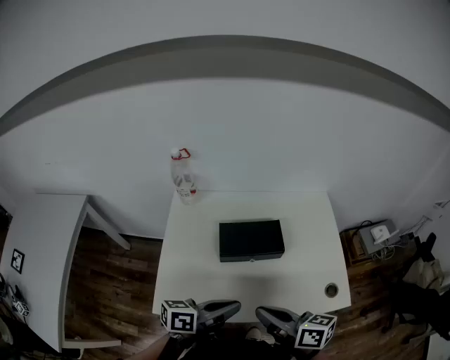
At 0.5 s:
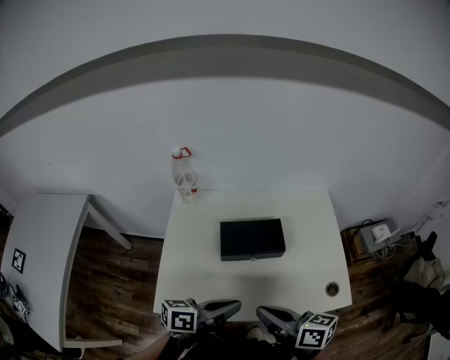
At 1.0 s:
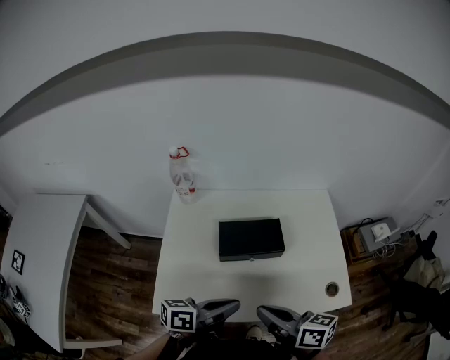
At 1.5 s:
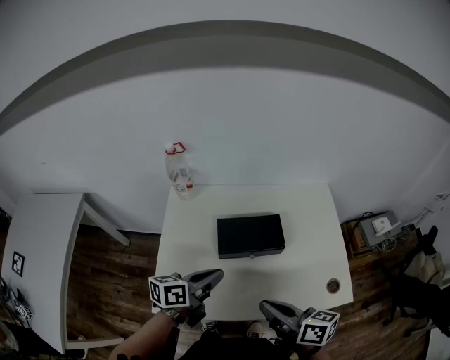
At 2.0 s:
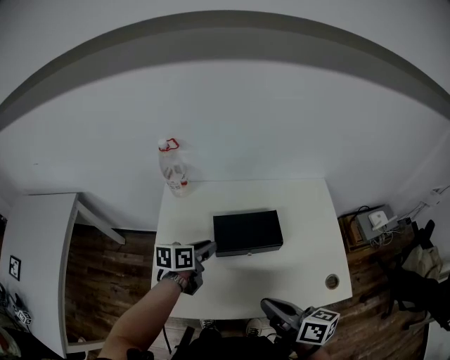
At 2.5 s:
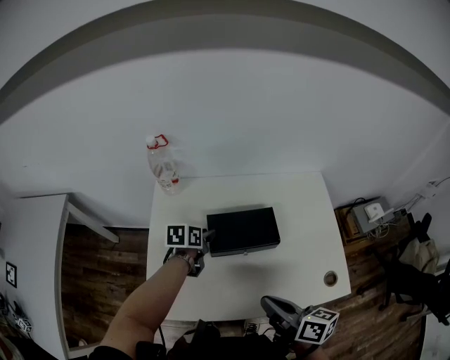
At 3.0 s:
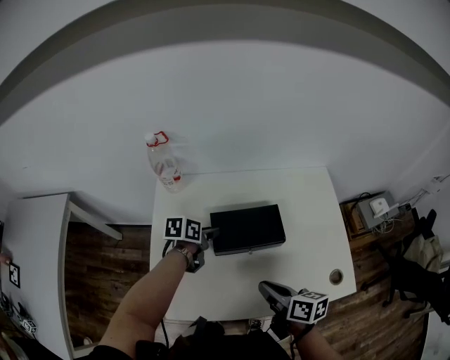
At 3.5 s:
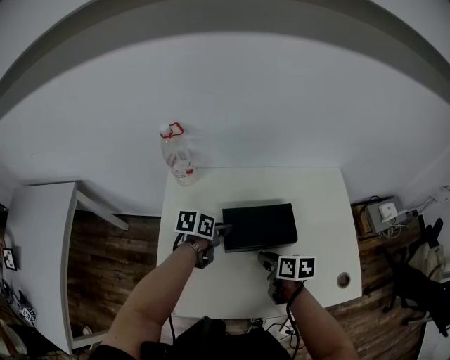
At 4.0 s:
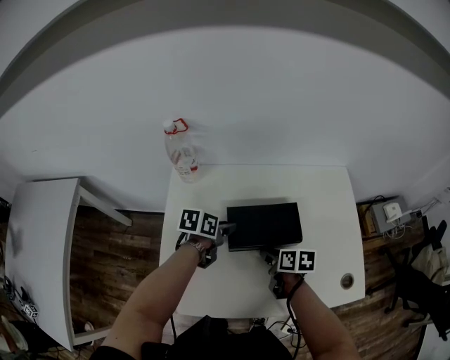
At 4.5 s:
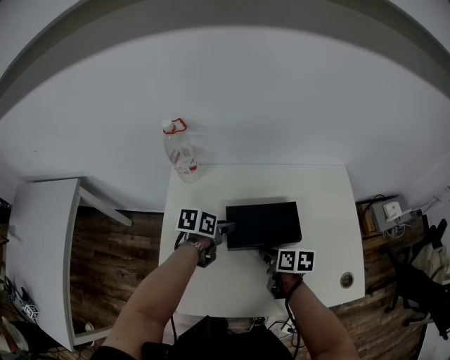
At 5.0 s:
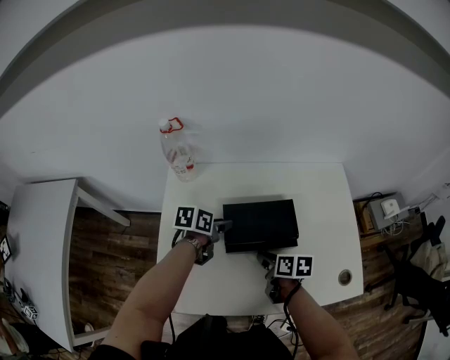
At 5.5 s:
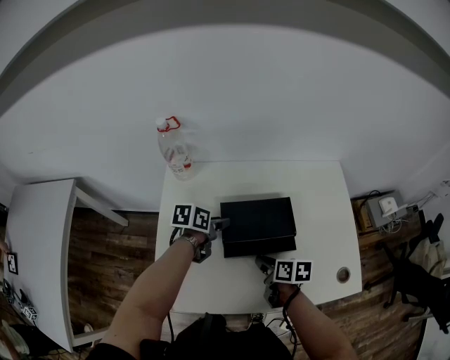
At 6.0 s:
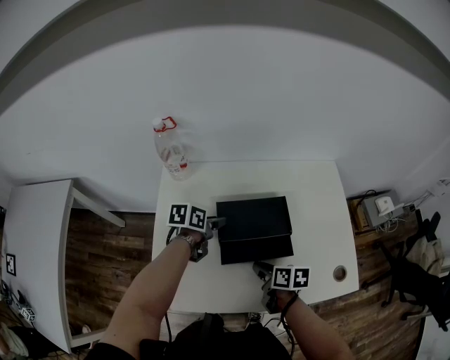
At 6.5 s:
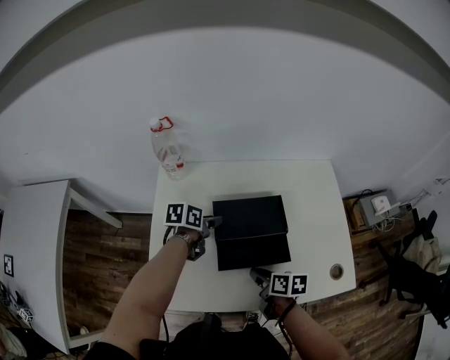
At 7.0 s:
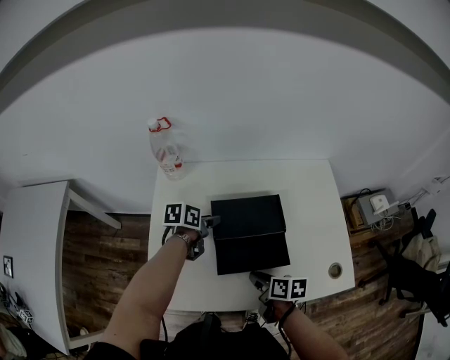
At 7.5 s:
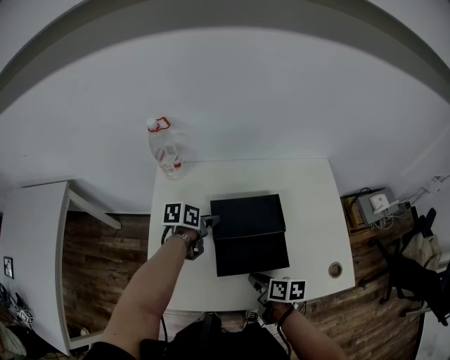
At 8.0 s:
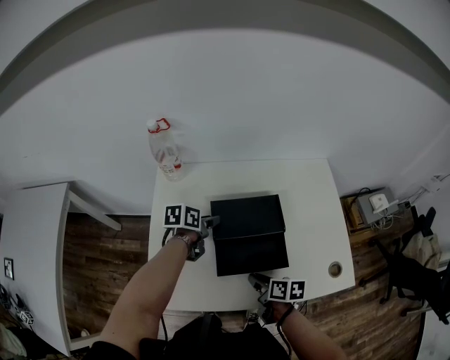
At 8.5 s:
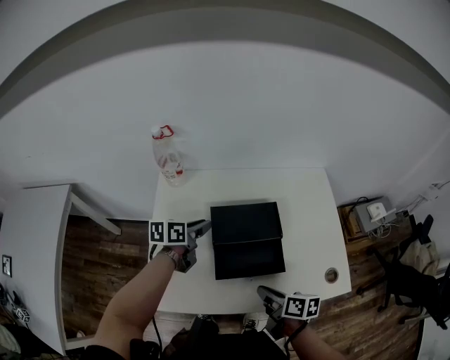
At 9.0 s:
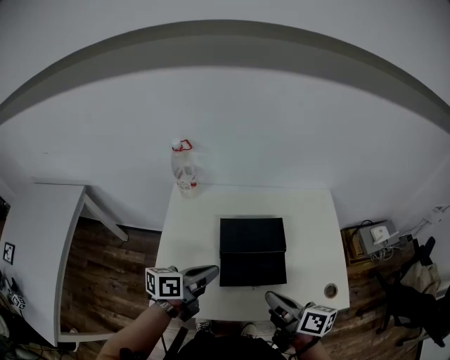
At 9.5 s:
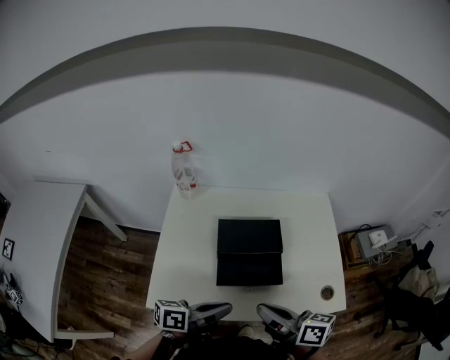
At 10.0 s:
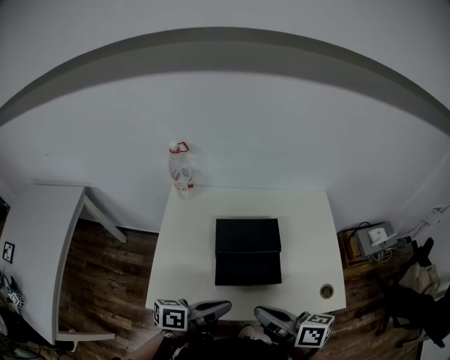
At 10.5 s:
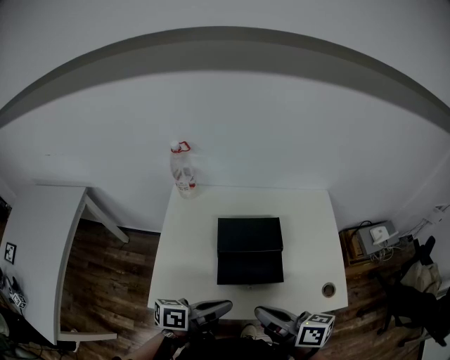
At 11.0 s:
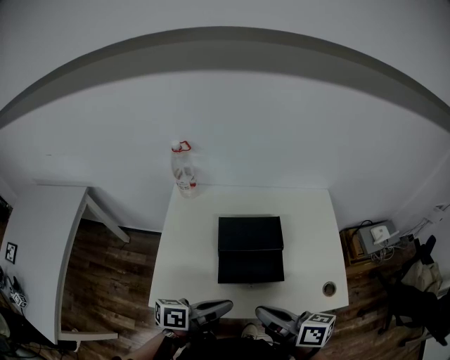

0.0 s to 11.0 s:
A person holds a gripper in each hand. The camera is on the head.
0.0 to 2.0 s: The left gripper is displaced forward, to the left and downward by roughly 25 cm, changes its angle by about 30 degrees, and opens up.
2.0 to 3.5 s: The left gripper moves downward and forward, about 10 cm; the right gripper is displaced downward and forward by roughly 25 cm, rotates about 30 degrees, and opens its fingers.
3.5 to 5.5 s: There are only small adjustments of the grippers.
5.5 to 7.5 s: The right gripper moves backward, roughly 5 cm.
7.5 to 9.0 s: The left gripper shifts some 20 cm backward and upward, rotates approximately 30 degrees, and closes. Meanwhile the right gripper goes some 15 cm upward, and changes its angle by roughly 30 degrees.
9.0 to 11.0 s: The right gripper shifts some 5 cm backward. Meanwhile the left gripper travels backward and to the right by roughly 10 cm.

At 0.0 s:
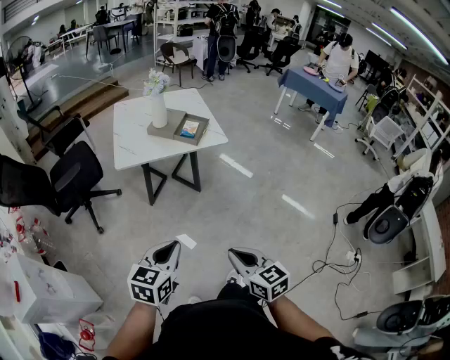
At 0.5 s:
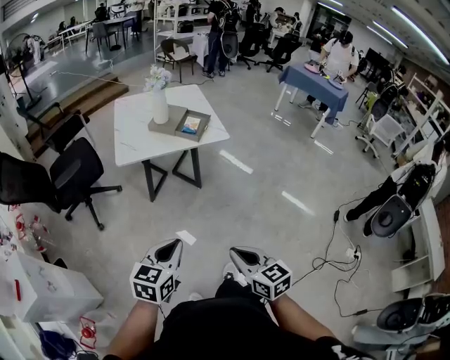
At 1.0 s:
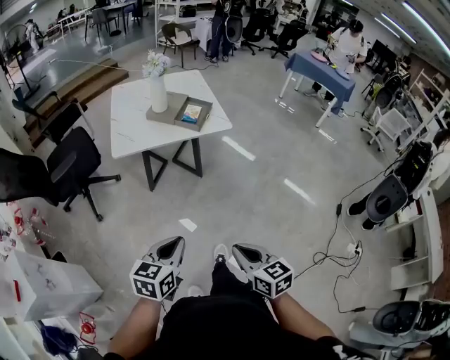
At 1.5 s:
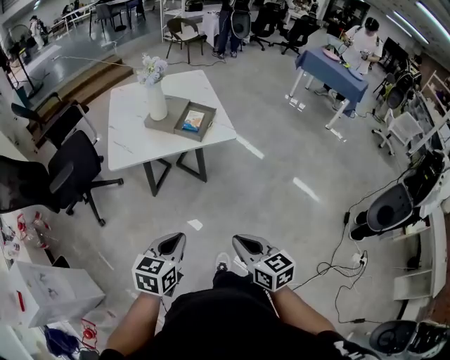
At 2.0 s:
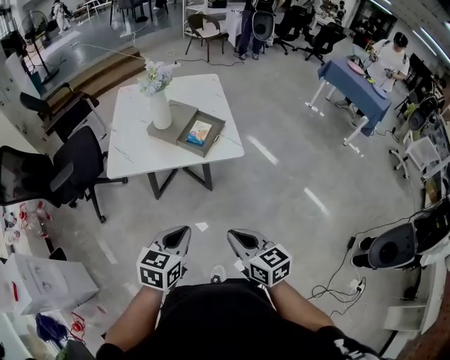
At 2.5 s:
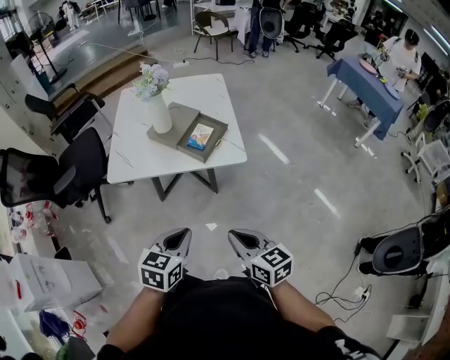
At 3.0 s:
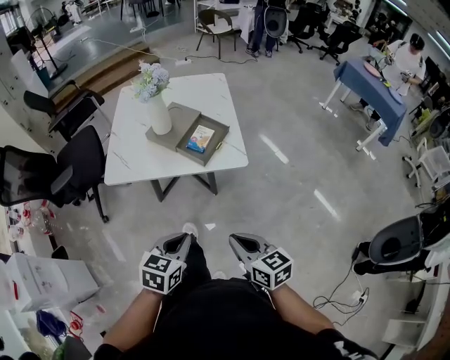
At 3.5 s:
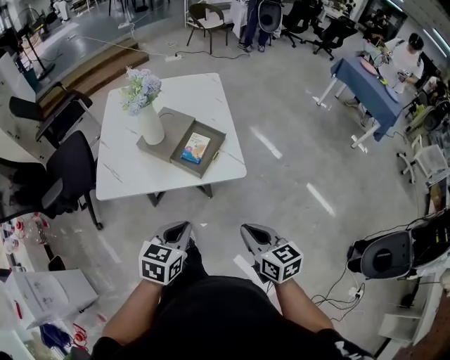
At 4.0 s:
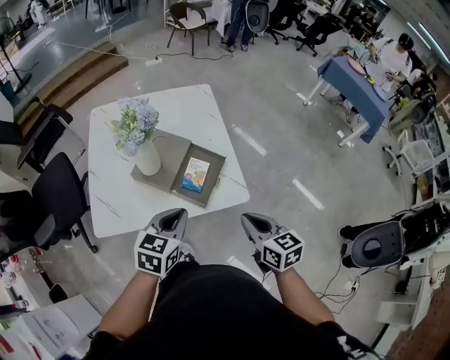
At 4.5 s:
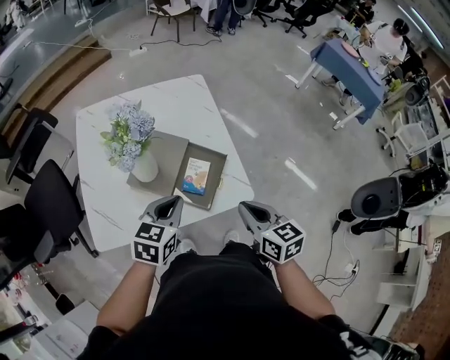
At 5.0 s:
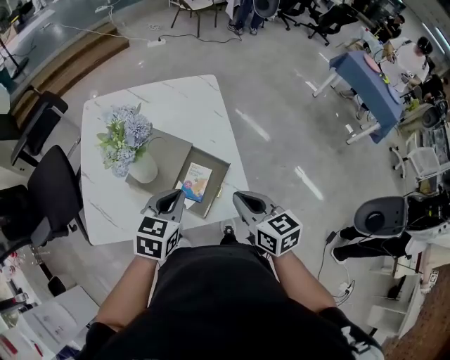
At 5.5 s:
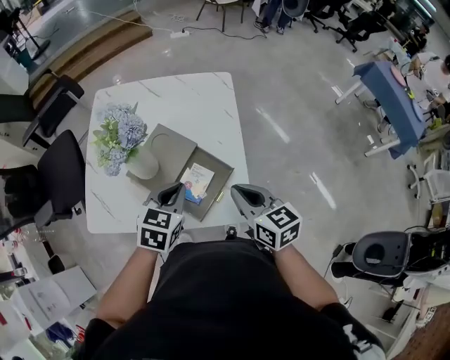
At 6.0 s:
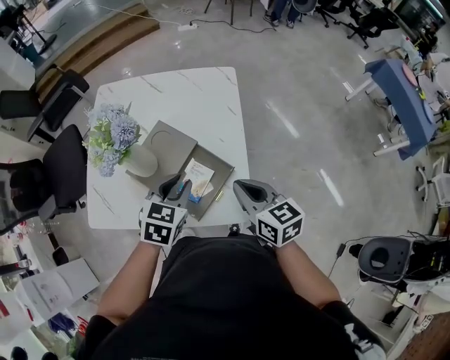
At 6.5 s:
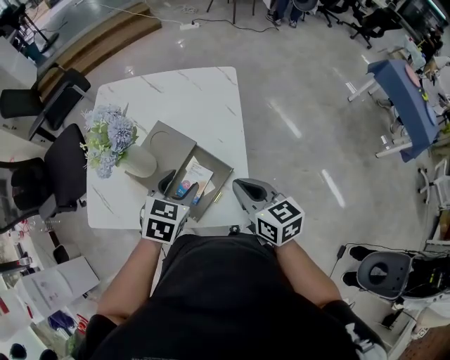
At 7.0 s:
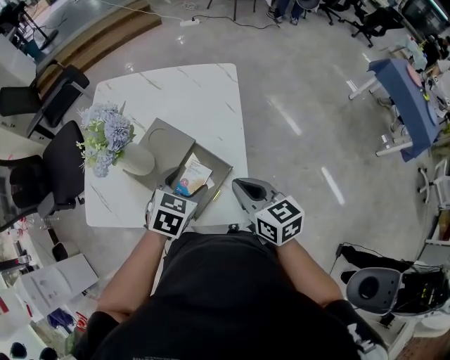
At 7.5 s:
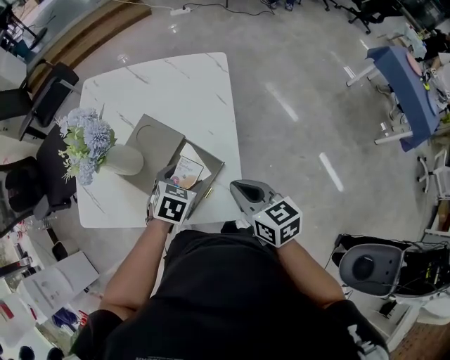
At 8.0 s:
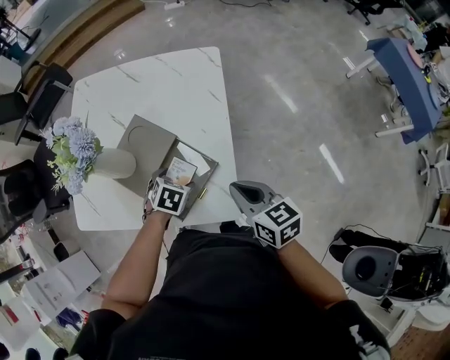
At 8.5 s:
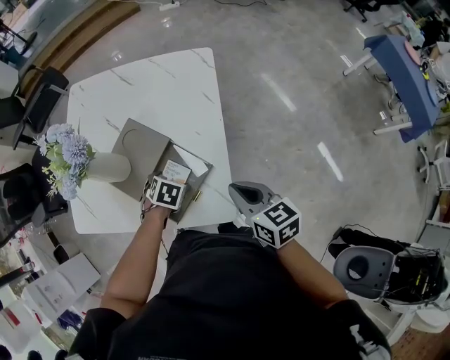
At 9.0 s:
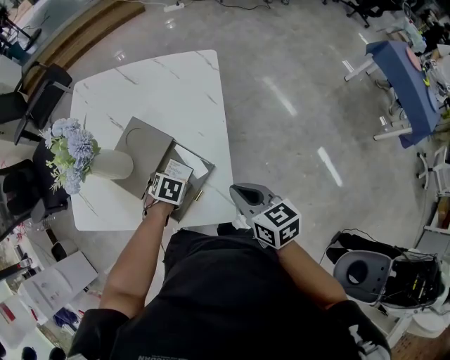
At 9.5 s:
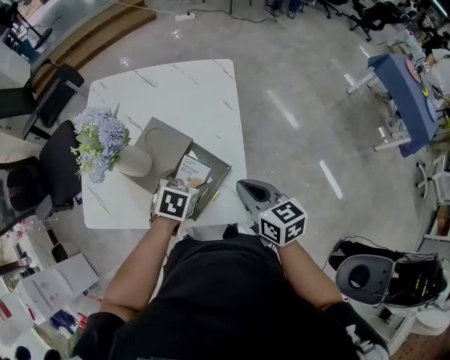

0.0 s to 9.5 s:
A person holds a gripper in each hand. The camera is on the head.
0.0 to 2.0 s: The right gripper moves forward, roughly 30 cm, while the left gripper travels forward and to the right by some 30 cm.
2.0 to 4.0 s: Both grippers travel together forward, about 35 cm.
4.0 to 5.5 s: Both grippers move forward, some 15 cm.
5.5 to 7.5 s: The left gripper shifts about 15 cm downward and to the right, and opens its fingers; the right gripper moves approximately 5 cm.
7.5 to 9.5 s: The left gripper moves some 10 cm downward and comes back.

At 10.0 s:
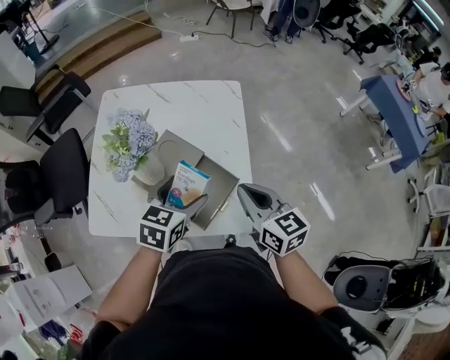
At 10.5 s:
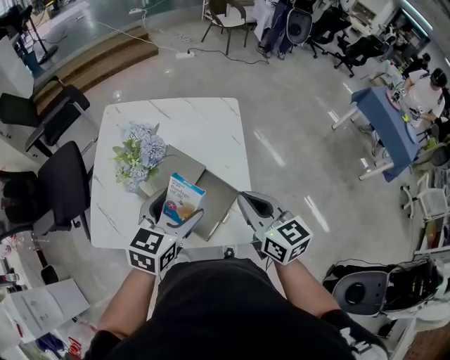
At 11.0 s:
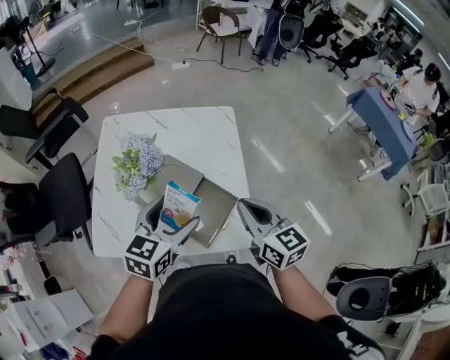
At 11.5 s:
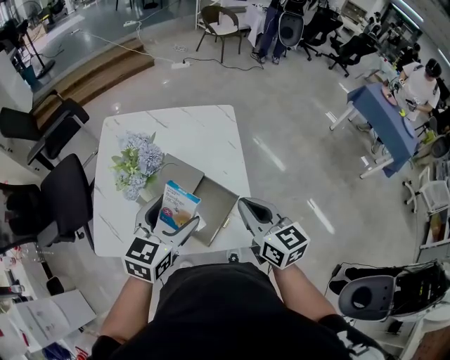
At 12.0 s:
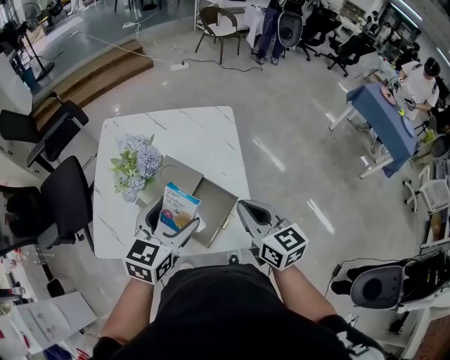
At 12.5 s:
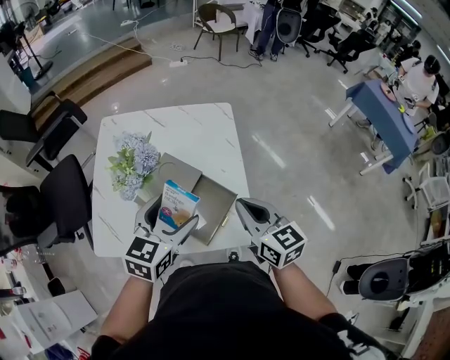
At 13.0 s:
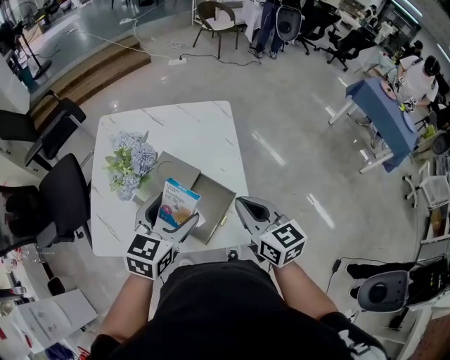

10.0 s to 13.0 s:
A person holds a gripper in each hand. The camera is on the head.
10.0 to 11.5 s: The left gripper is displaced upward by about 10 cm.
11.5 to 13.0 s: There are only small adjustments of the grippers.

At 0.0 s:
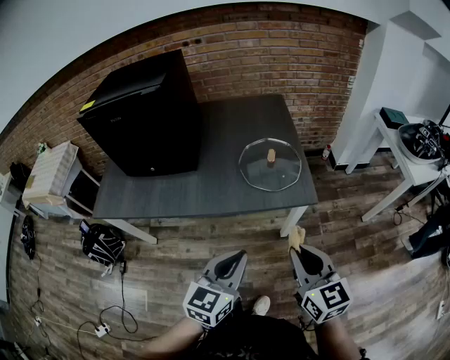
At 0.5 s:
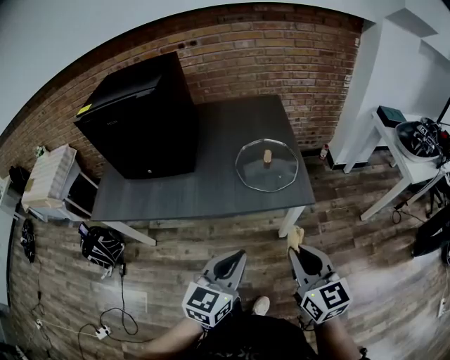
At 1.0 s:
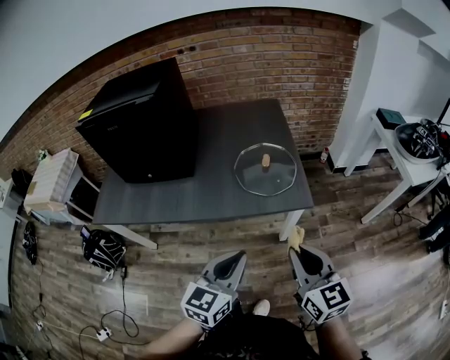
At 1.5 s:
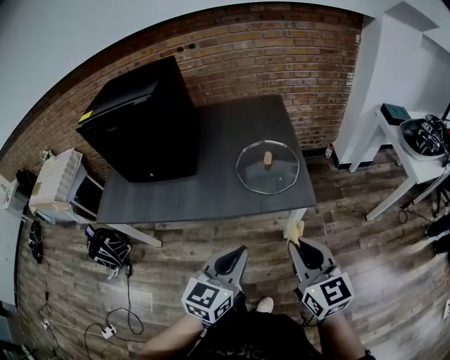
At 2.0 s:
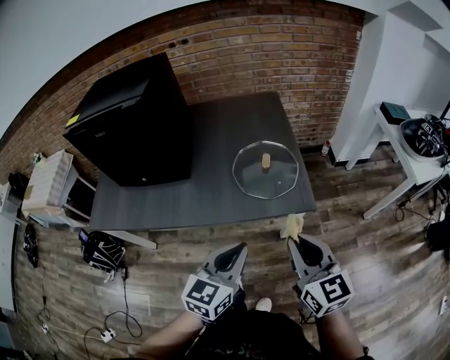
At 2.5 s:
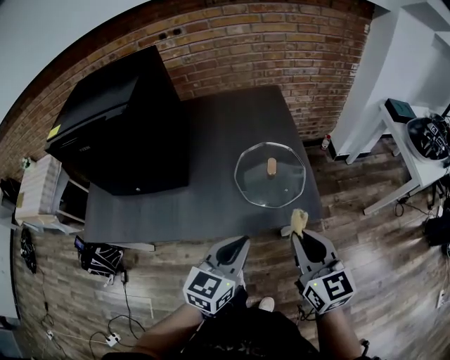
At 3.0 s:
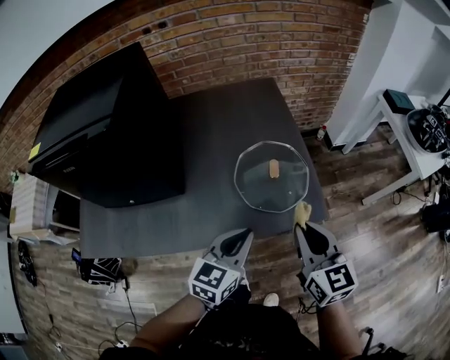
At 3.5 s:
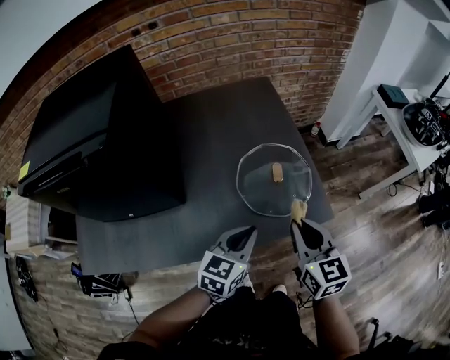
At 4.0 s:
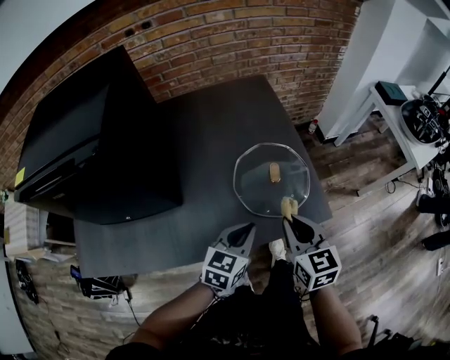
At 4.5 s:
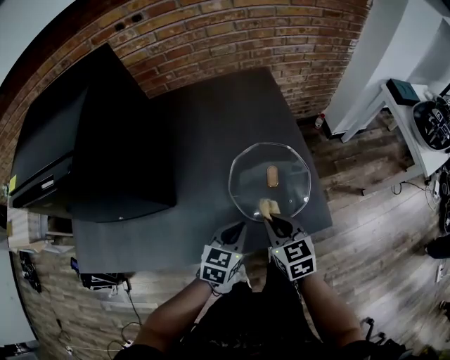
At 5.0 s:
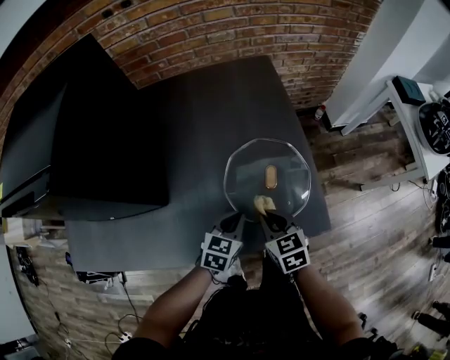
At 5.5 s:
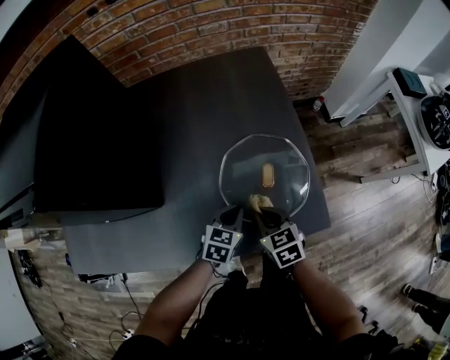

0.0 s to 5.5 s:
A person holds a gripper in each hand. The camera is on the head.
0.0 to 2.0 s: Both grippers move forward, roughly 10 cm.
2.0 to 3.5 s: The right gripper goes some 20 cm forward and to the left. Meanwhile the left gripper moves forward, downward and to the left, roughly 20 cm.
3.5 to 5.5 s: Both grippers travel together downward and forward, roughly 20 cm. The right gripper swivels about 30 degrees.
